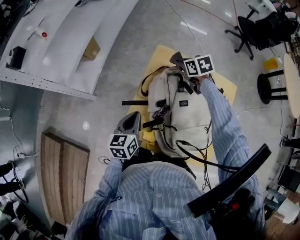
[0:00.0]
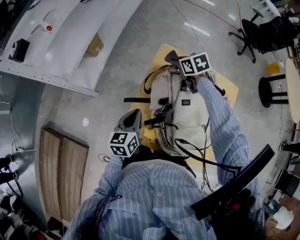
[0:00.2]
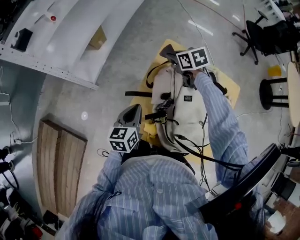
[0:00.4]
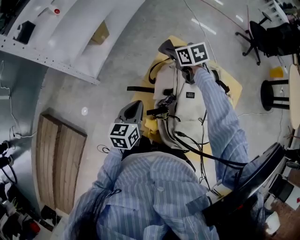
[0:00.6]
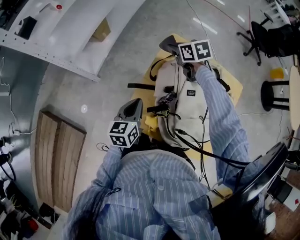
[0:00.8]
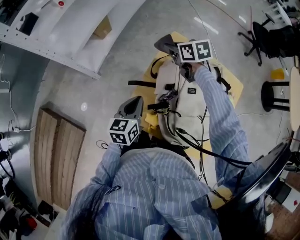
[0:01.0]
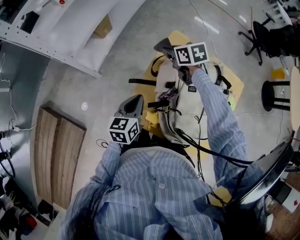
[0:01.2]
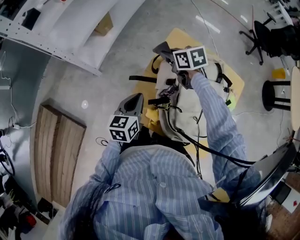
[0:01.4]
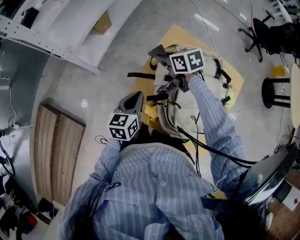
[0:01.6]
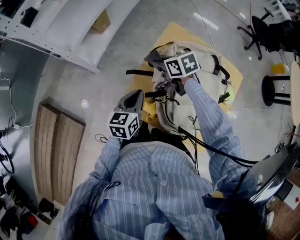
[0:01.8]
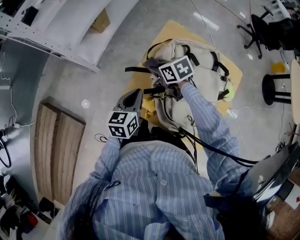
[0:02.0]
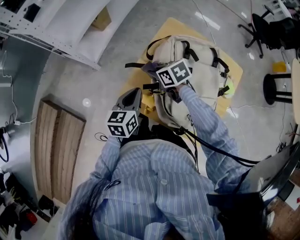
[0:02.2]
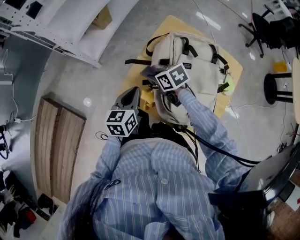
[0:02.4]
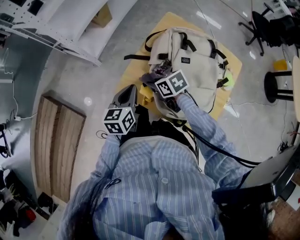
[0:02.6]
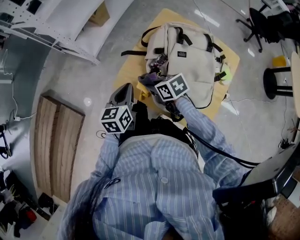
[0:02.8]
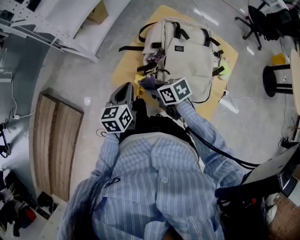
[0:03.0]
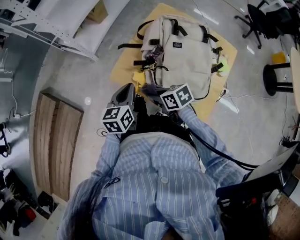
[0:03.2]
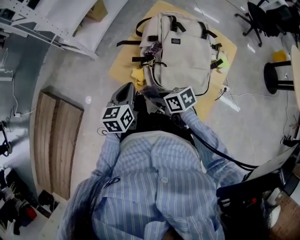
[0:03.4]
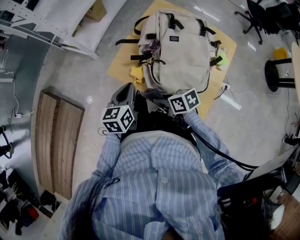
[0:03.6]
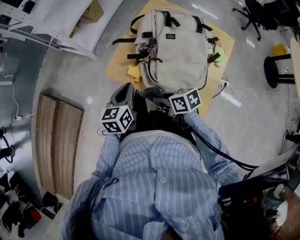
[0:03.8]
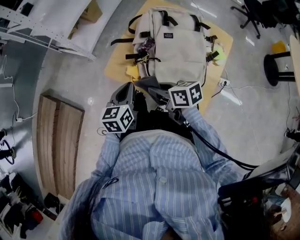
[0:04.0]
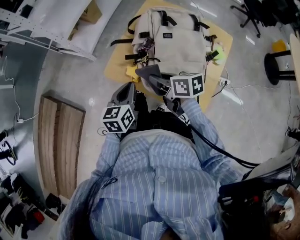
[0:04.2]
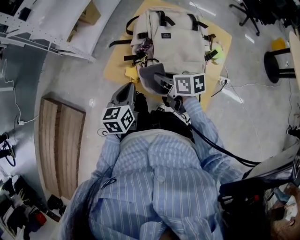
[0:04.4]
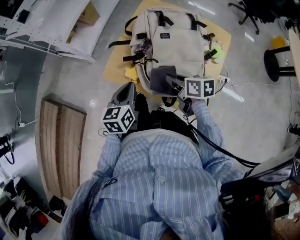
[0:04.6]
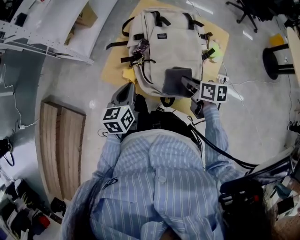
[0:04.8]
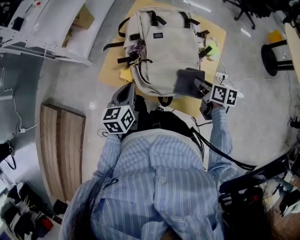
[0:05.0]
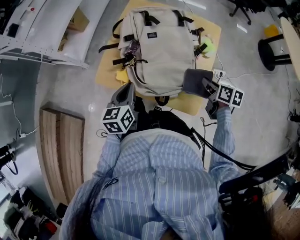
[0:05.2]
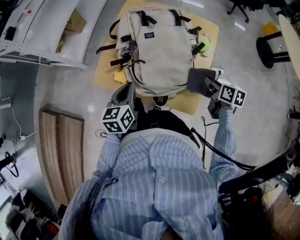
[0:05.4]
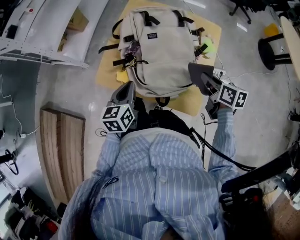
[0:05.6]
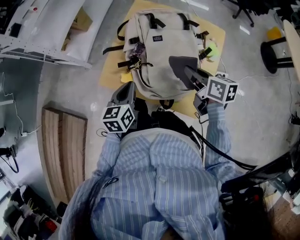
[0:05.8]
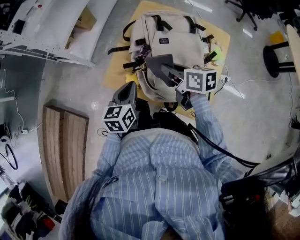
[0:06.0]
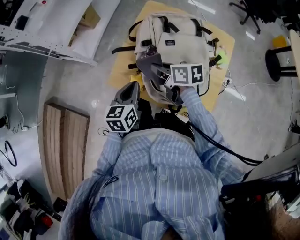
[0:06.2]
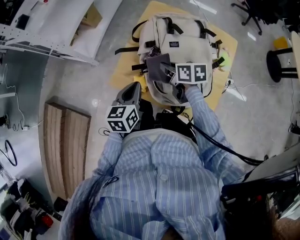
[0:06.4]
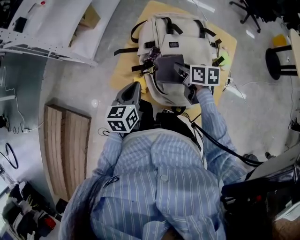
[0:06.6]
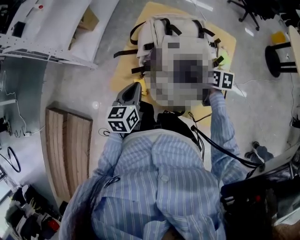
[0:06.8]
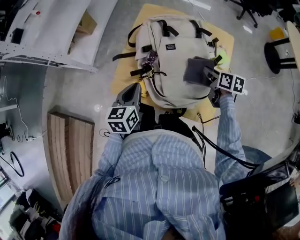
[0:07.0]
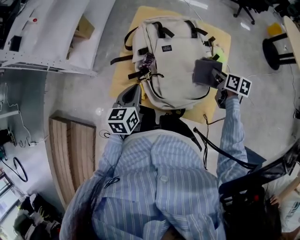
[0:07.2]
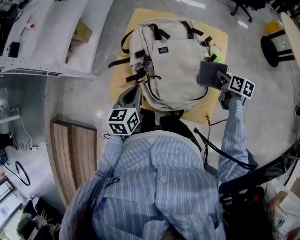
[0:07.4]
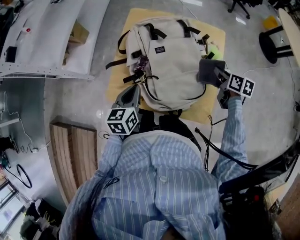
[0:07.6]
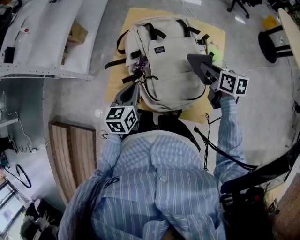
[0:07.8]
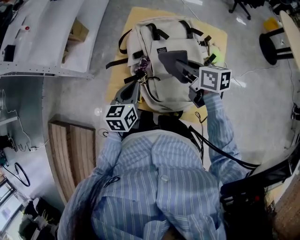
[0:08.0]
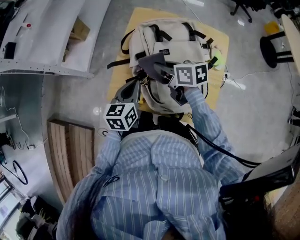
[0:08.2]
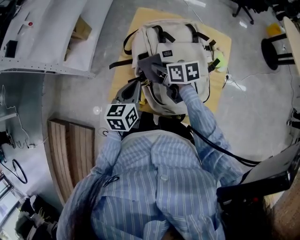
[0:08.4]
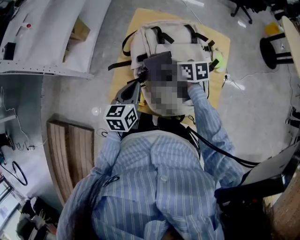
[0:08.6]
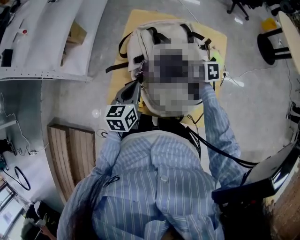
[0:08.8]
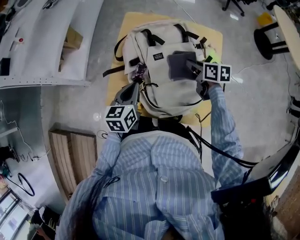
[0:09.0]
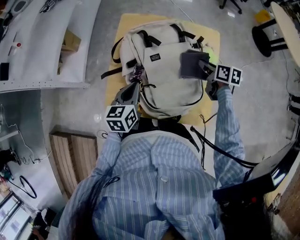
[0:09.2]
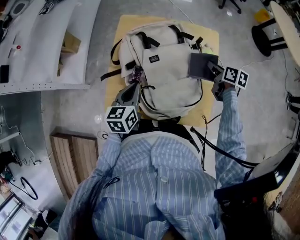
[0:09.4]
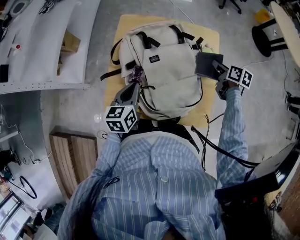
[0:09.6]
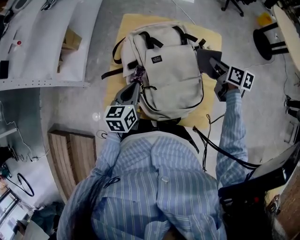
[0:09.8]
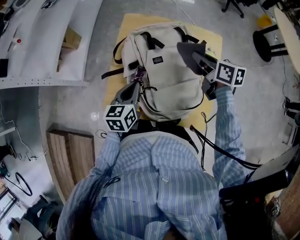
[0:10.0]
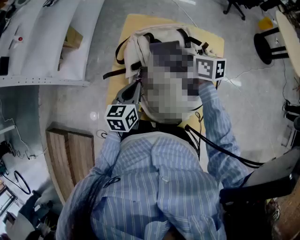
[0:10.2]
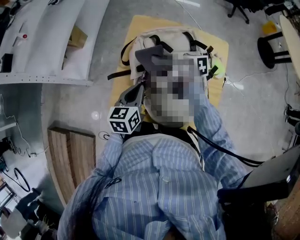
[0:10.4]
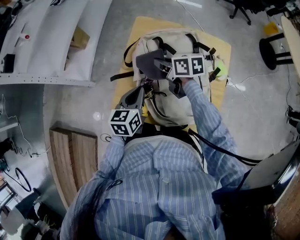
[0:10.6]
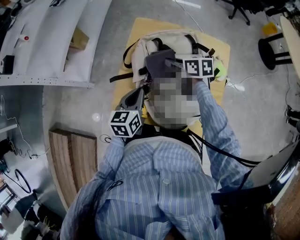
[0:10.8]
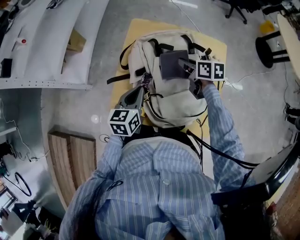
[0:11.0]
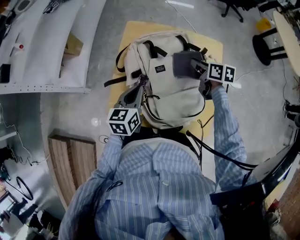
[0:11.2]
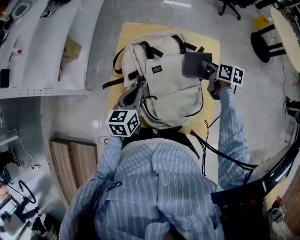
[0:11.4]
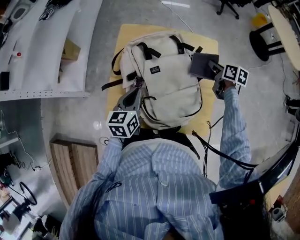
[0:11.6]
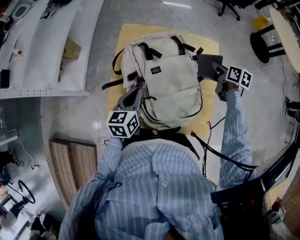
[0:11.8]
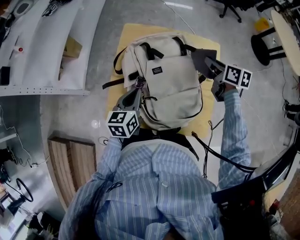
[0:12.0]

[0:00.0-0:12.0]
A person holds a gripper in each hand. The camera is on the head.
0:00.0 to 0:01.6: The right gripper travels to the left and backward by about 20 cm.
0:01.6 to 0:03.0: The right gripper moves backward, roughly 30 cm. The left gripper moves backward, roughly 10 cm.
0:03.0 to 0:04.4: The left gripper moves backward, approximately 5 cm, while the right gripper heads to the right, covering approximately 10 cm, moves some 10 cm backward and comes back, and changes its angle by roughly 20 degrees.
0:04.4 to 0:06.0: The right gripper shifts some 5 cm forward, and goes to the right and returns, approximately 30 cm each way.
0:06.0 to 0:07.6: The left gripper changes place by roughly 5 cm. The right gripper shifts by some 25 cm, and rotates approximately 30 degrees.
0:07.6 to 0:09.0: The right gripper shifts approximately 15 cm to the left and forward.
0:09.0 to 0:10.4: The right gripper shifts roughly 20 cm to the left, and turns by approximately 20 degrees.
0:10.4 to 0:12.0: The right gripper is displaced to the right by roughly 25 cm, and turns by approximately 30 degrees.

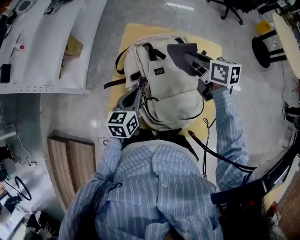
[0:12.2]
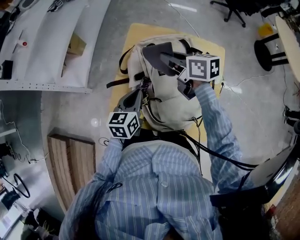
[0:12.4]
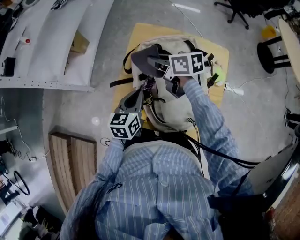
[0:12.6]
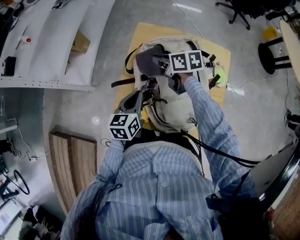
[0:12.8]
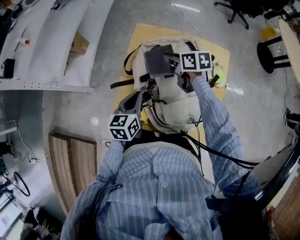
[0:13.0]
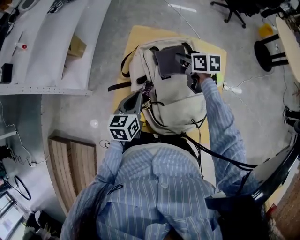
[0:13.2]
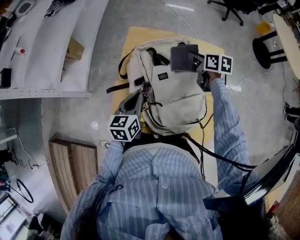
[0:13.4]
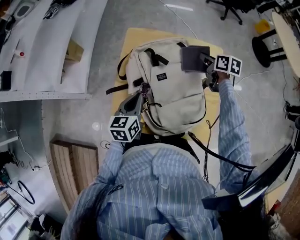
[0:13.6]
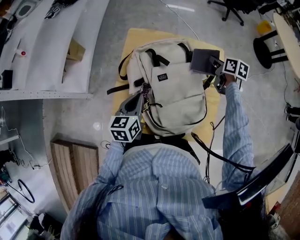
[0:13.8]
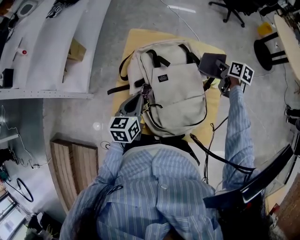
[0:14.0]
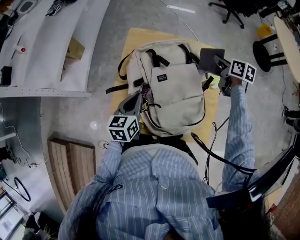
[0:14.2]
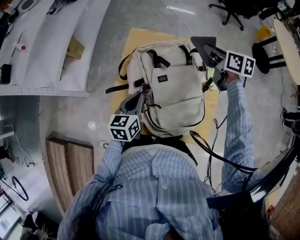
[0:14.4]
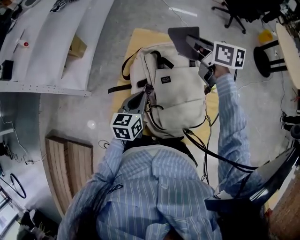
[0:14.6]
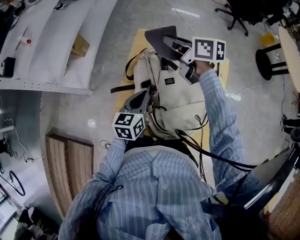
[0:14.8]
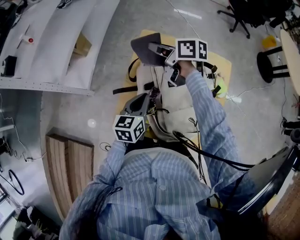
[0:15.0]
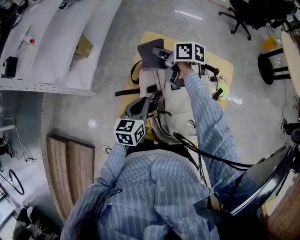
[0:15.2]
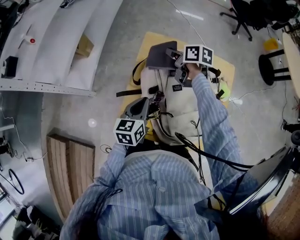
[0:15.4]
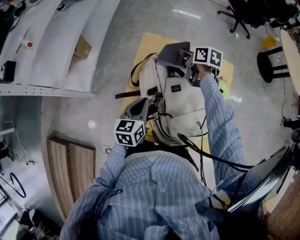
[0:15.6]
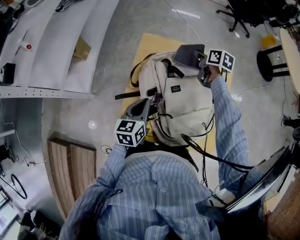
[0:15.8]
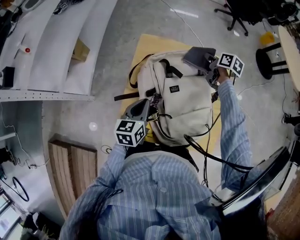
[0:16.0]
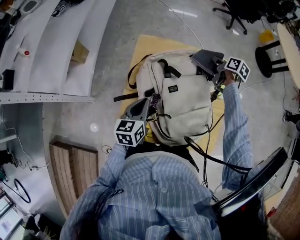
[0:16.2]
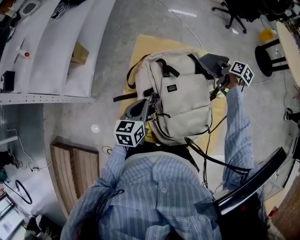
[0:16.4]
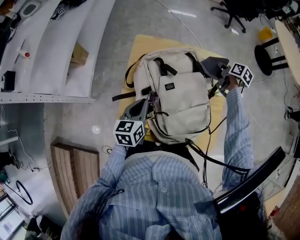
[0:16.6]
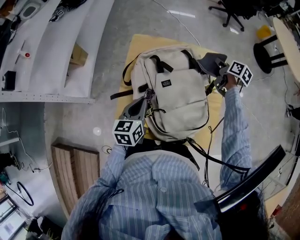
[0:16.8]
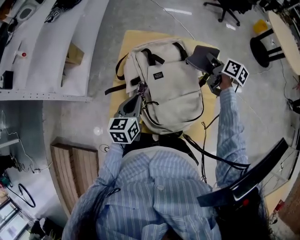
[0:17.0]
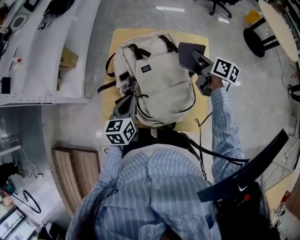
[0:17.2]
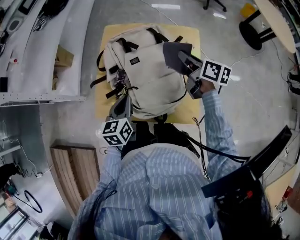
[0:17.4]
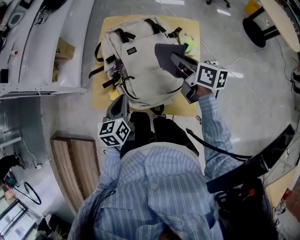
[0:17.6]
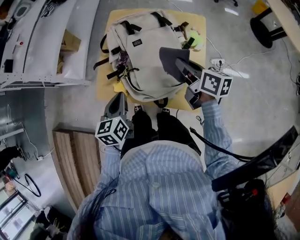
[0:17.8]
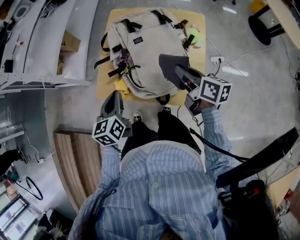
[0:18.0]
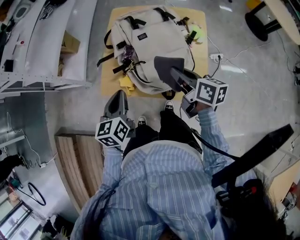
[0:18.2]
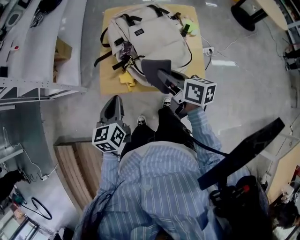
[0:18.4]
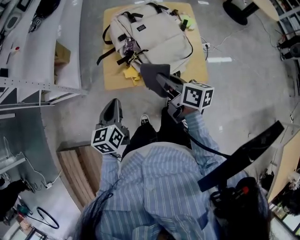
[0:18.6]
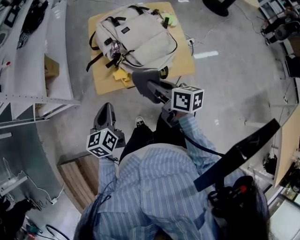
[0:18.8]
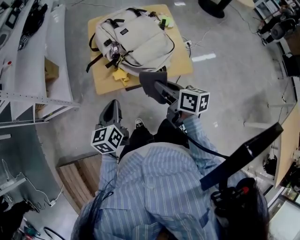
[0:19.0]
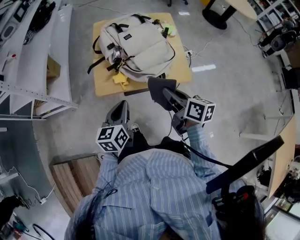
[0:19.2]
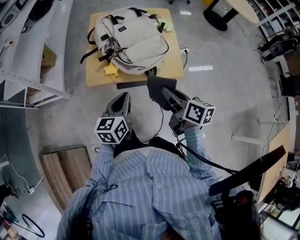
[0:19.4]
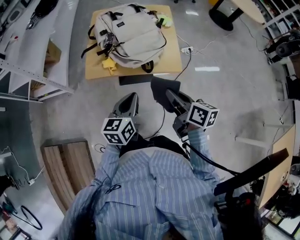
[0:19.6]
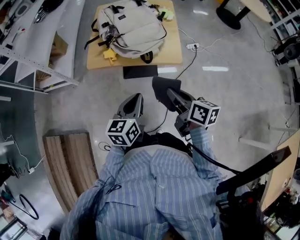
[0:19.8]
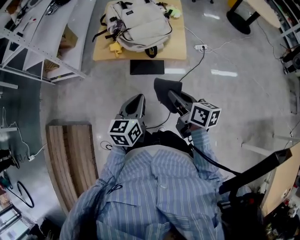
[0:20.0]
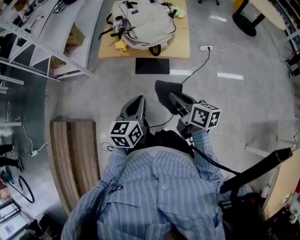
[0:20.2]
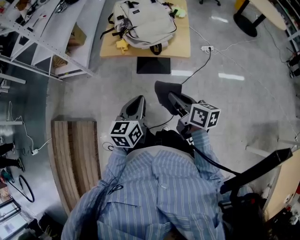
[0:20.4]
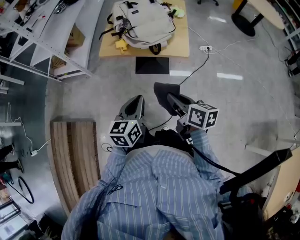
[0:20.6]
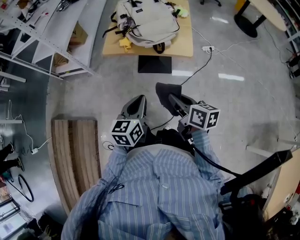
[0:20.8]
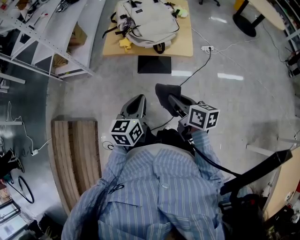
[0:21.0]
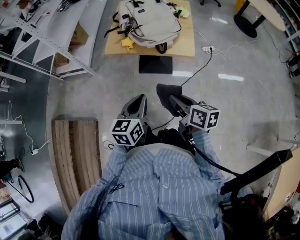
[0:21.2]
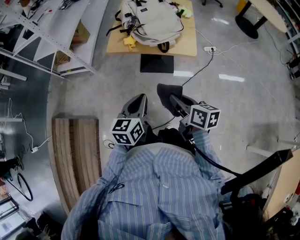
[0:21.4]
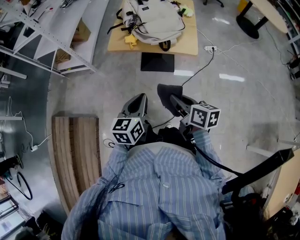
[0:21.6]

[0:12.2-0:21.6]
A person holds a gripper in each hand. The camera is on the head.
0:12.2 to 0:13.8: The right gripper travels to the right and downward by approximately 20 cm, and turns by some 30 degrees.
0:13.8 to 0:15.4: The right gripper heads to the left, covering approximately 30 cm, and rotates approximately 20 degrees.
0:15.4 to 0:17.0: The left gripper ends up approximately 5 cm from where it was. The right gripper goes about 30 cm to the right, and changes its angle by approximately 30 degrees.
0:17.0 to 0:18.4: The left gripper moves backward and to the left, about 20 cm; the right gripper is displaced backward and to the left by about 40 cm.
0:18.4 to 0:20.0: The right gripper goes approximately 35 cm backward. Meanwhile the left gripper travels backward and to the right by about 30 cm.
0:20.0 to 0:21.6: The right gripper heads to the left and backward, covering about 10 cm. The left gripper heads to the left, covering some 5 cm.

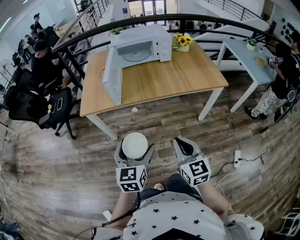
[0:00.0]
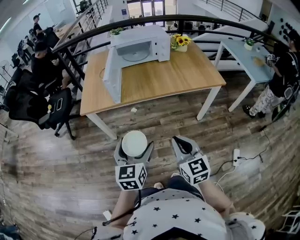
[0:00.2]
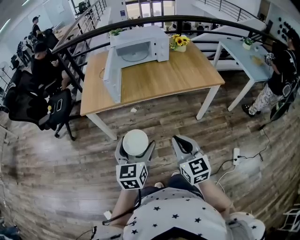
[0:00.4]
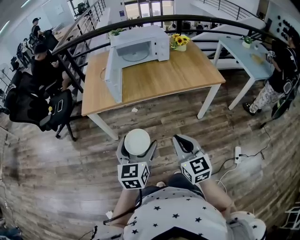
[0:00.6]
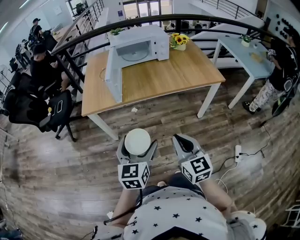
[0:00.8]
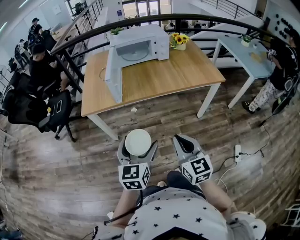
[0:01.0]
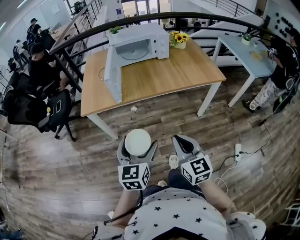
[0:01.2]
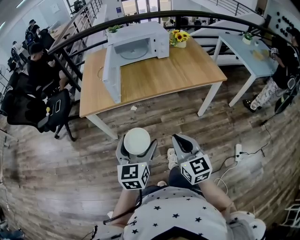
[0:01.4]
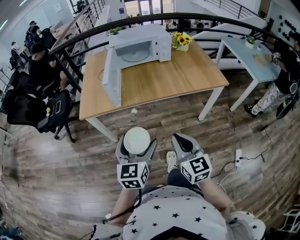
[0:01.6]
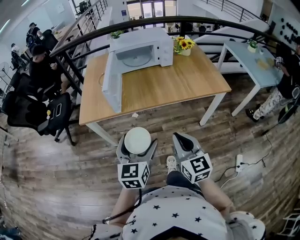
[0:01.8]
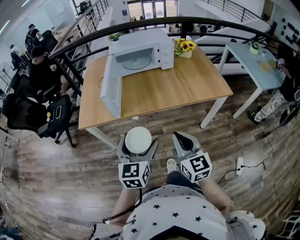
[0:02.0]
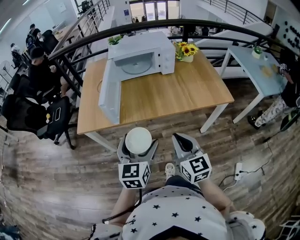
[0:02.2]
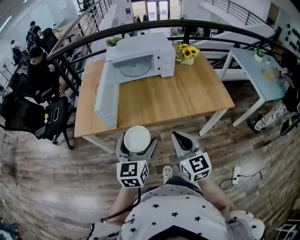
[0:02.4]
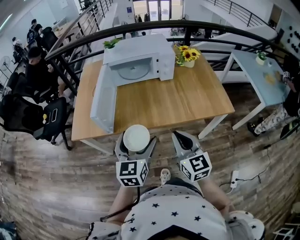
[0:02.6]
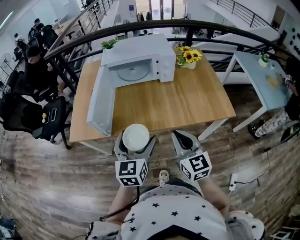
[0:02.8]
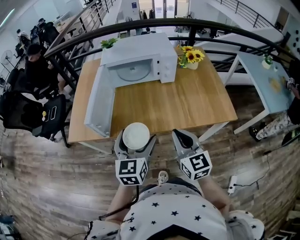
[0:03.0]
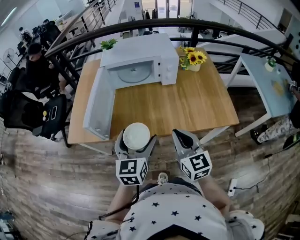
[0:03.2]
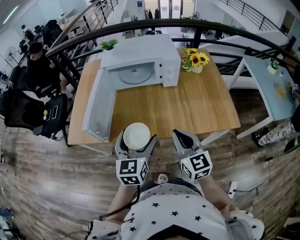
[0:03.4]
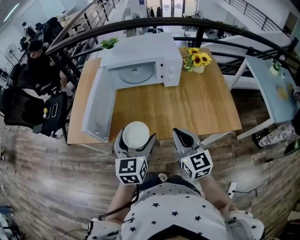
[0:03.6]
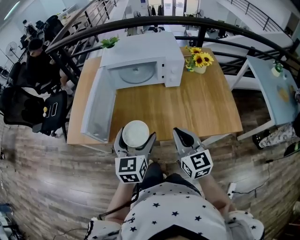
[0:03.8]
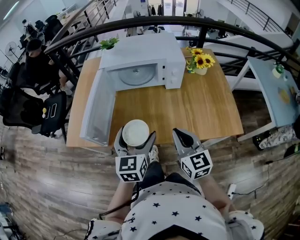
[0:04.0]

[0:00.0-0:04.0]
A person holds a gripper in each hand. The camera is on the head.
0:00.0 to 0:01.4: The grippers move only a little.
0:01.4 to 0:02.6: The grippers both shift forward by approximately 25 cm.
0:02.6 to 0:04.0: The grippers both shift forward by approximately 15 cm.
